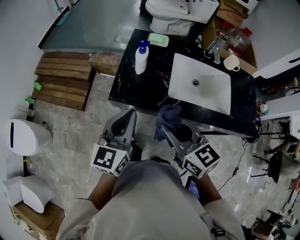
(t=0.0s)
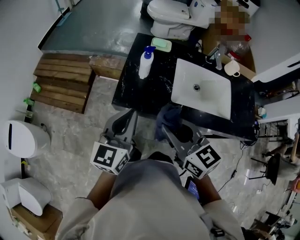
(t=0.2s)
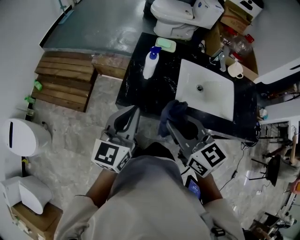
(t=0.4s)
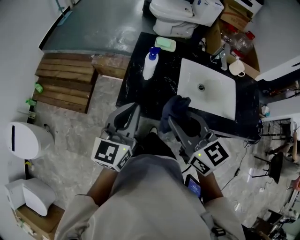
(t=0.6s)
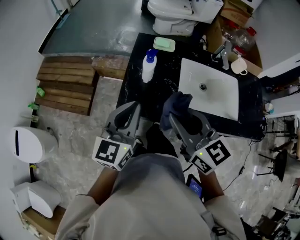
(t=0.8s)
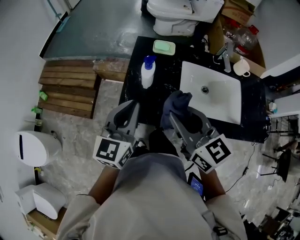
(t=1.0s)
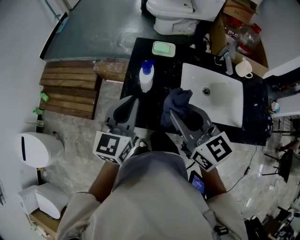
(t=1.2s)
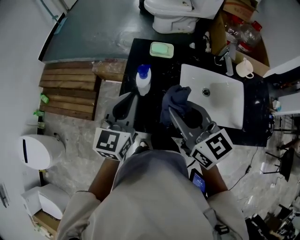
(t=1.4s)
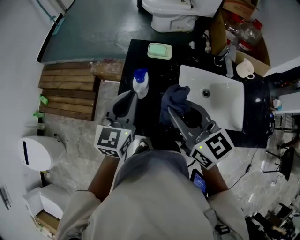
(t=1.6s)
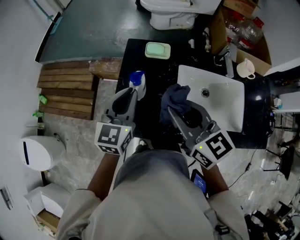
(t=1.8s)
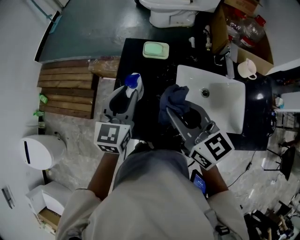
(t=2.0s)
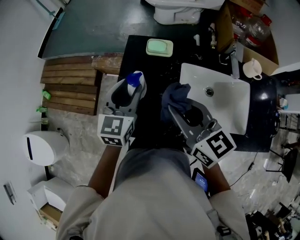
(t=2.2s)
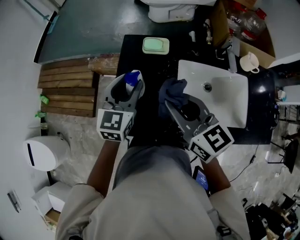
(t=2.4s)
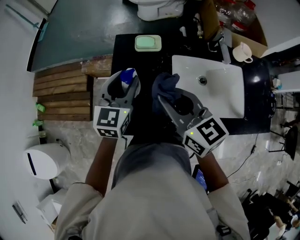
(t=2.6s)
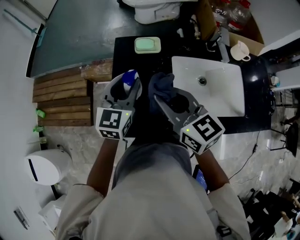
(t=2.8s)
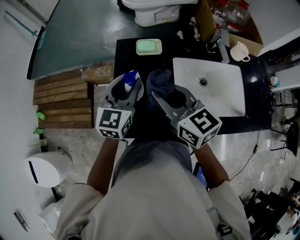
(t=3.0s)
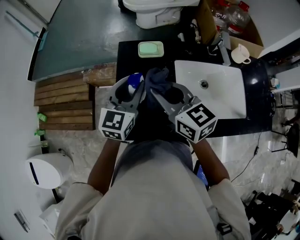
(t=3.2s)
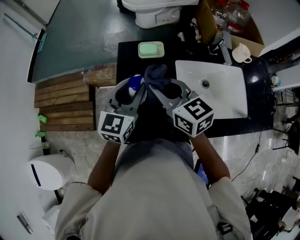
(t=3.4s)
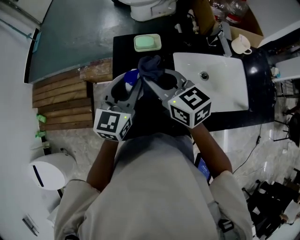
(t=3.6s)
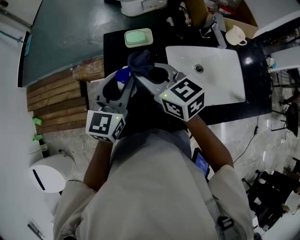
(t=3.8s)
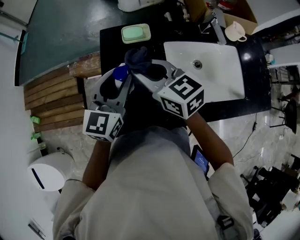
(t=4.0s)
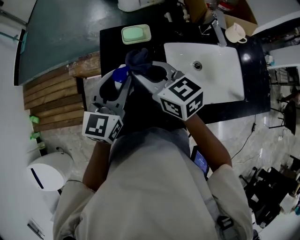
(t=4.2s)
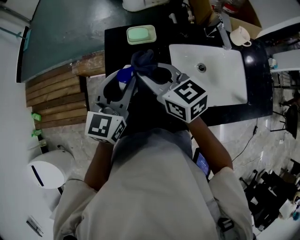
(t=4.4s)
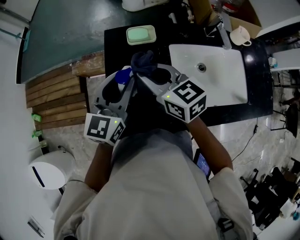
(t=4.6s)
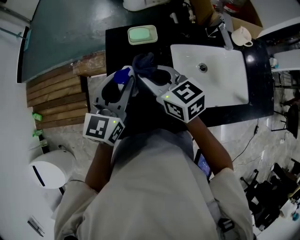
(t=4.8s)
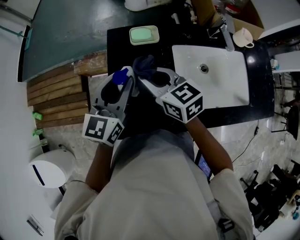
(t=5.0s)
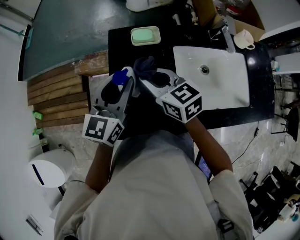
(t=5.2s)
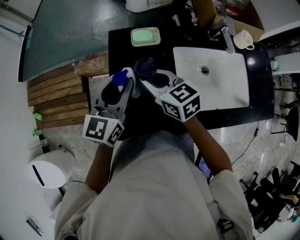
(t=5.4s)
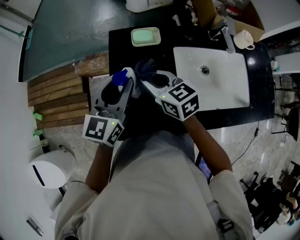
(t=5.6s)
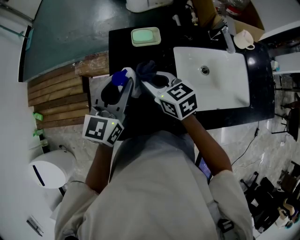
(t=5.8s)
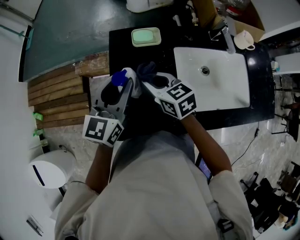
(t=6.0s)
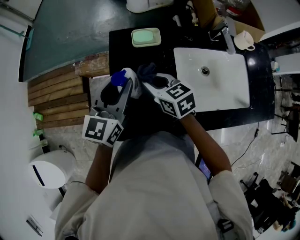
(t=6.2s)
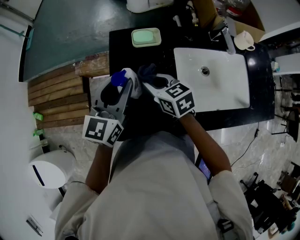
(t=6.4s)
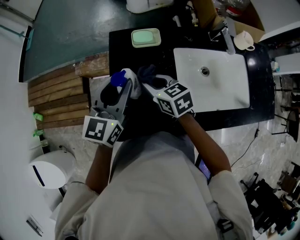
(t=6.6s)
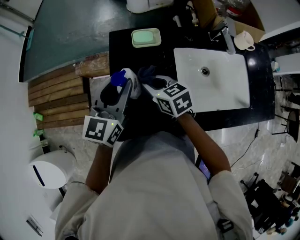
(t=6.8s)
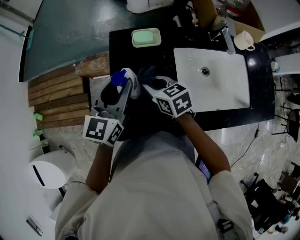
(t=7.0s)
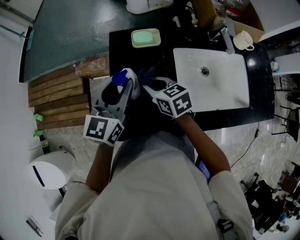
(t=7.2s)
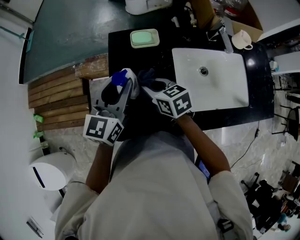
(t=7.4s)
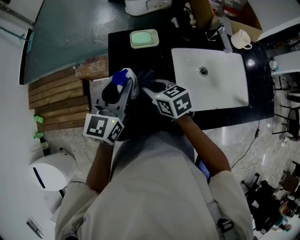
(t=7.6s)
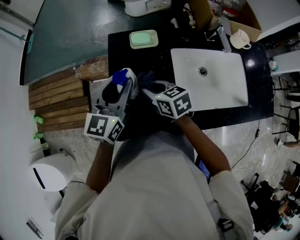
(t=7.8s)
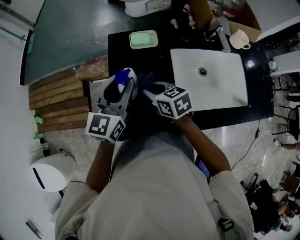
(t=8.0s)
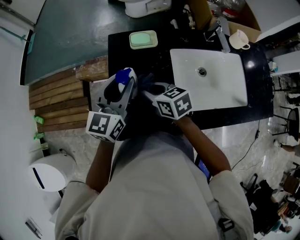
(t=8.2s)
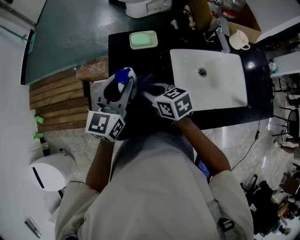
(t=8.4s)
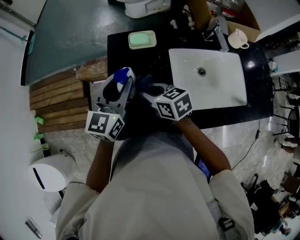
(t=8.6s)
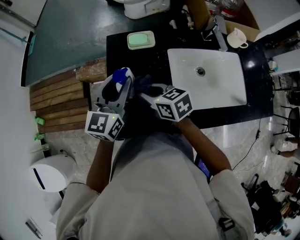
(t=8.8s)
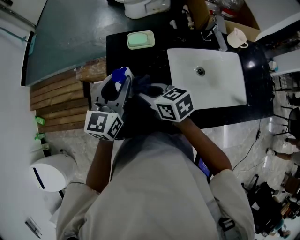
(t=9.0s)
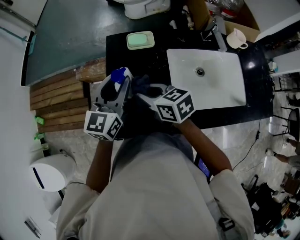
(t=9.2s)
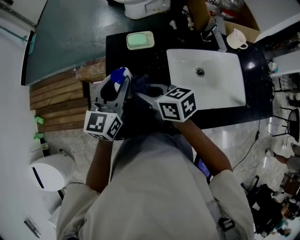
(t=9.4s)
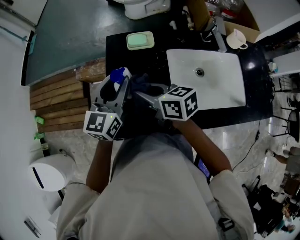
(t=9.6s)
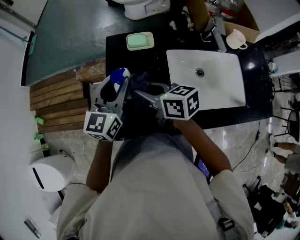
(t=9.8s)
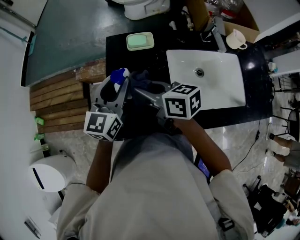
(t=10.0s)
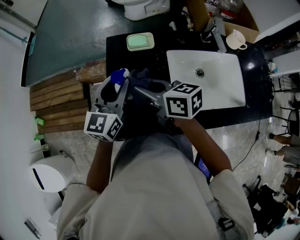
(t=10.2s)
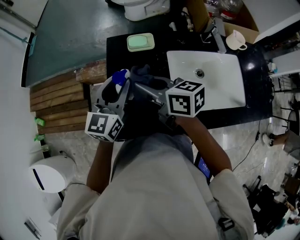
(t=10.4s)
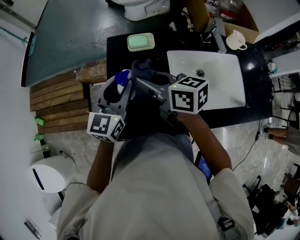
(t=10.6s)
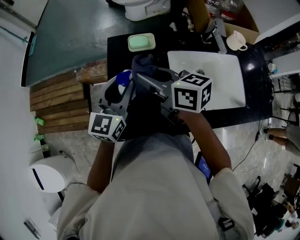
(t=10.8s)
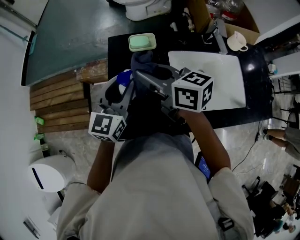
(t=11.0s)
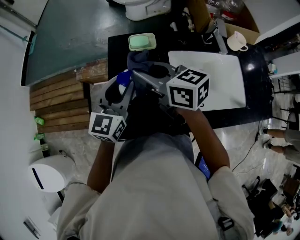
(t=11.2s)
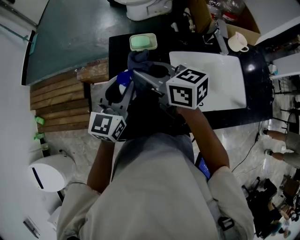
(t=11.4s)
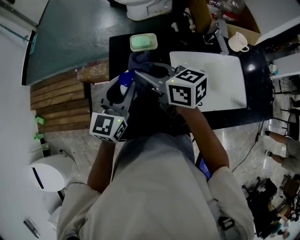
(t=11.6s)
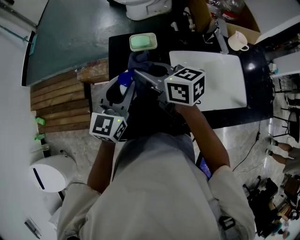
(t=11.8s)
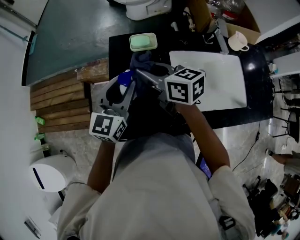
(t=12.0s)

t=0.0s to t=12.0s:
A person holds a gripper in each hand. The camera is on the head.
t=0.0s to t=1.6s: Both grippers travel together forward, about 20 cm.
t=1.6s to t=3.0s: The two grippers go approximately 5 cm forward. The left gripper opens.
t=3.0s to t=4.4s: The right gripper heads forward and downward, covering roughly 10 cm.
t=4.4s to t=6.0s: The right gripper shifts some 10 cm downward.
t=6.0s to t=9.0s: The grippers make only small movements.
t=9.0s to t=10.4s: The right gripper goes approximately 10 cm upward.
t=10.4s to t=12.0s: The grippers make only small movements.

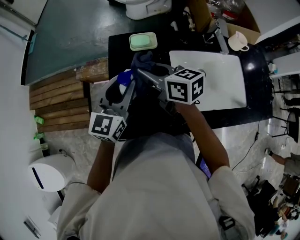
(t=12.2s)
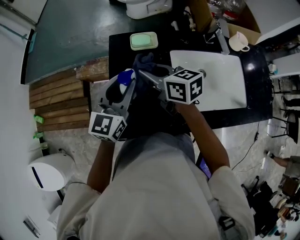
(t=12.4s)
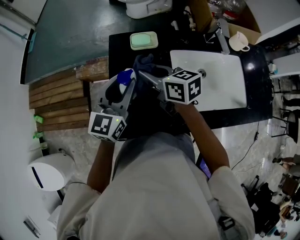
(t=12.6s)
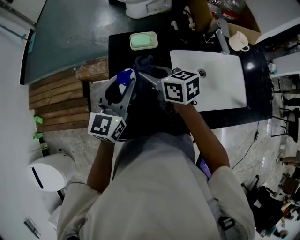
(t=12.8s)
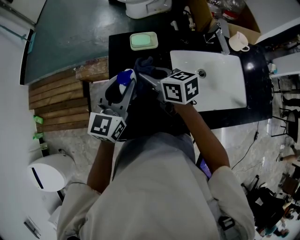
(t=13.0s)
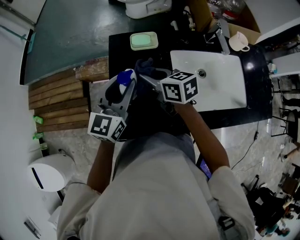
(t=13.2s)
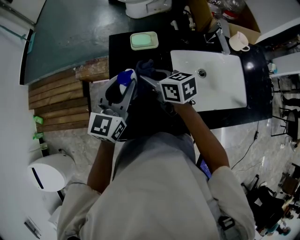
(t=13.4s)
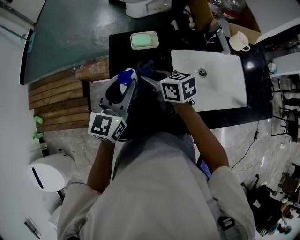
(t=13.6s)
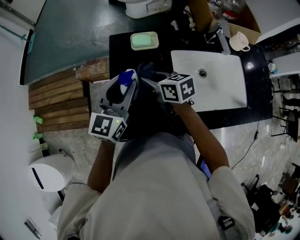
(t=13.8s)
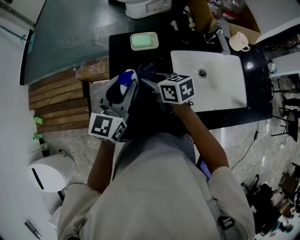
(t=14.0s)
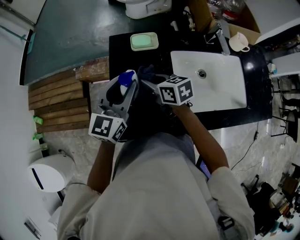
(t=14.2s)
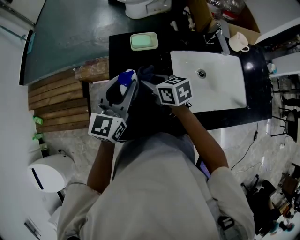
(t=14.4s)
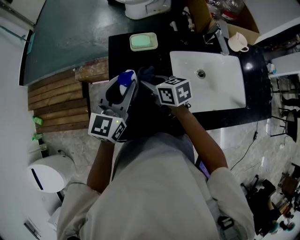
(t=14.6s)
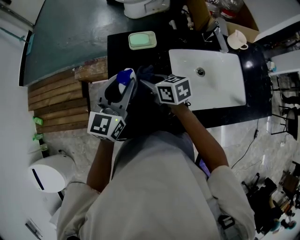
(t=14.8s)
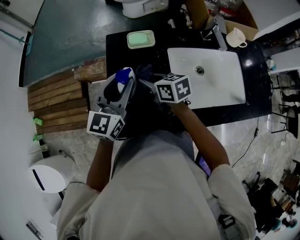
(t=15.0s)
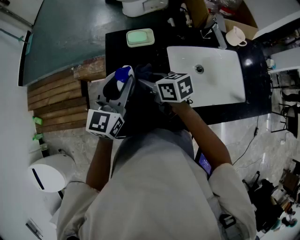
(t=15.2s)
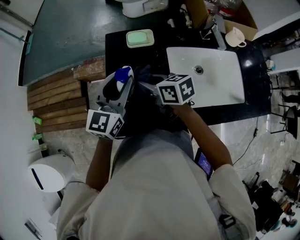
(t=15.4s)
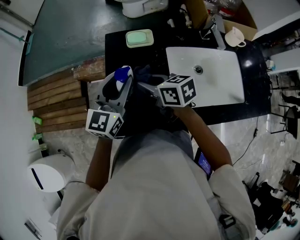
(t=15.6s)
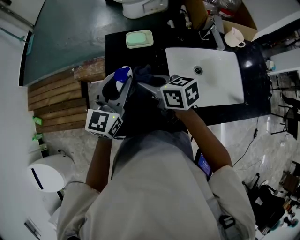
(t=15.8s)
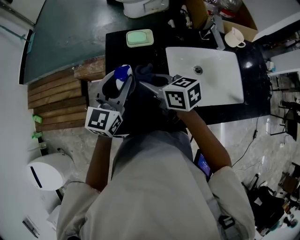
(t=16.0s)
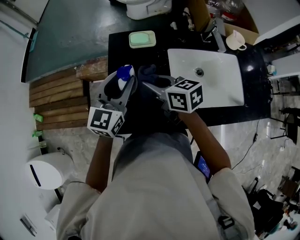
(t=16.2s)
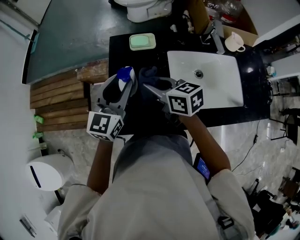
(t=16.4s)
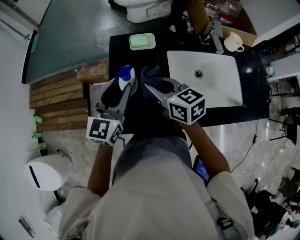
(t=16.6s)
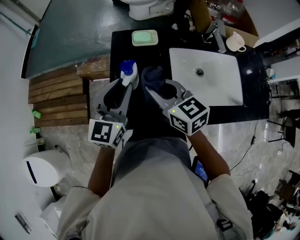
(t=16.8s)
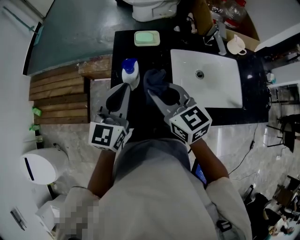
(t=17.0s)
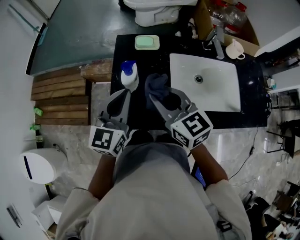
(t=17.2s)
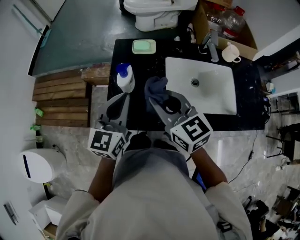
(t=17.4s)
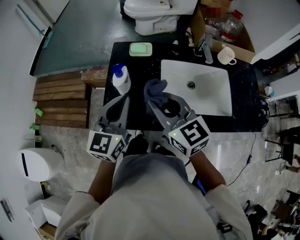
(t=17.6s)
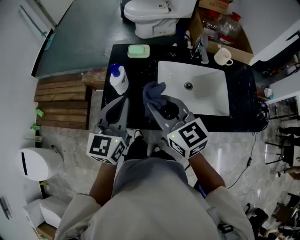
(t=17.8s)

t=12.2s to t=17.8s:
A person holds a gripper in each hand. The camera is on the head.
t=12.2s to t=13.6s: The right gripper goes approximately 5 cm downward.
t=13.6s to t=15.0s: The grippers stay close to where they were, moving slightly.
t=15.0s to t=16.4s: The right gripper heads upward, covering roughly 5 cm.
t=16.4s to t=17.8s: The right gripper travels backward, upward and to the right by some 20 cm, and turns by some 30 degrees. The left gripper travels backward and upward by some 15 cm, and closes.

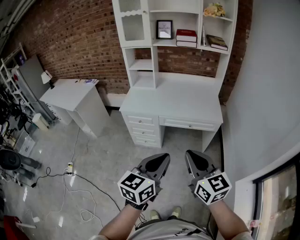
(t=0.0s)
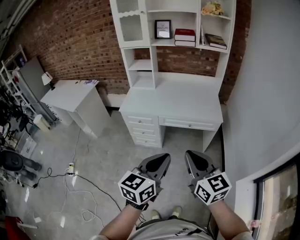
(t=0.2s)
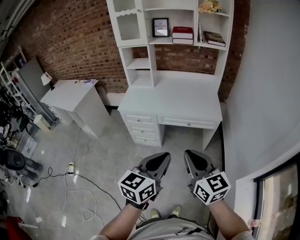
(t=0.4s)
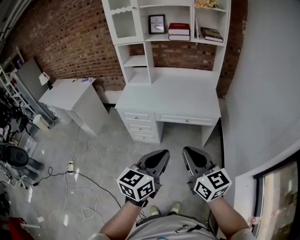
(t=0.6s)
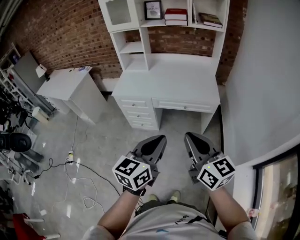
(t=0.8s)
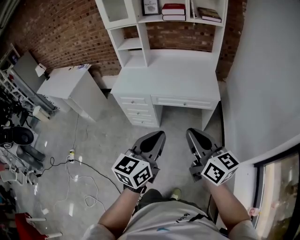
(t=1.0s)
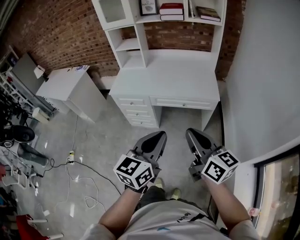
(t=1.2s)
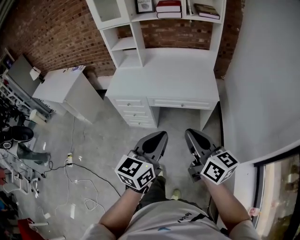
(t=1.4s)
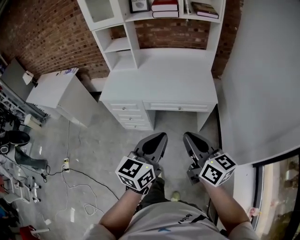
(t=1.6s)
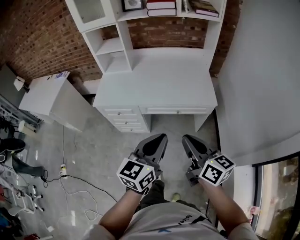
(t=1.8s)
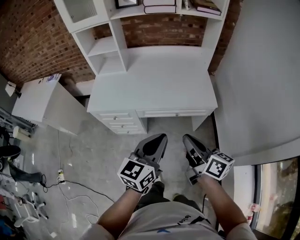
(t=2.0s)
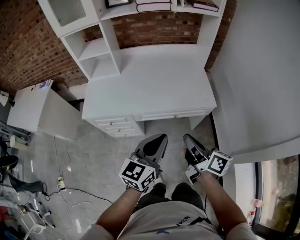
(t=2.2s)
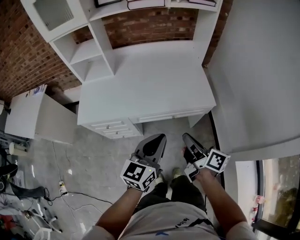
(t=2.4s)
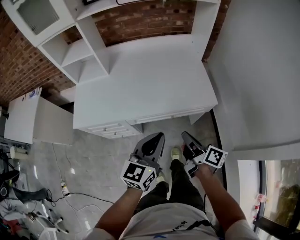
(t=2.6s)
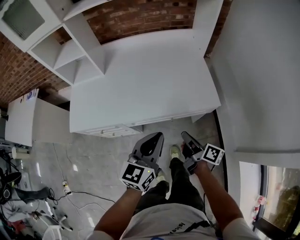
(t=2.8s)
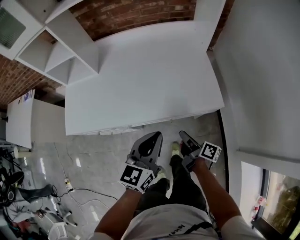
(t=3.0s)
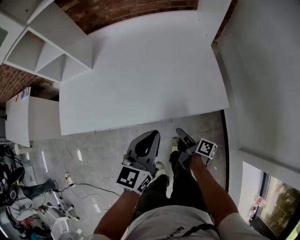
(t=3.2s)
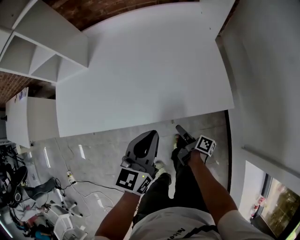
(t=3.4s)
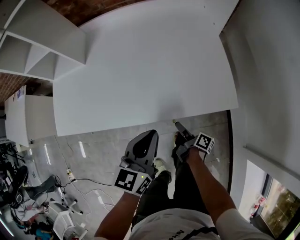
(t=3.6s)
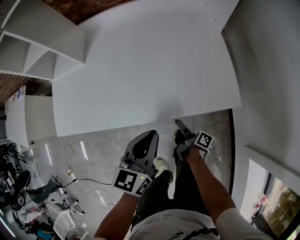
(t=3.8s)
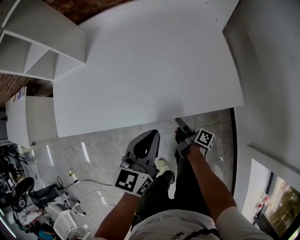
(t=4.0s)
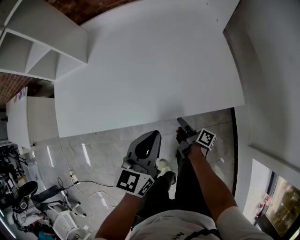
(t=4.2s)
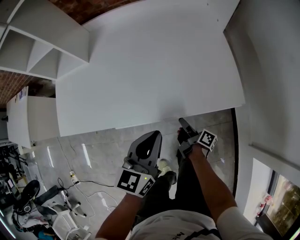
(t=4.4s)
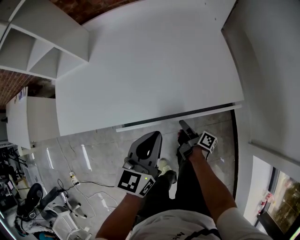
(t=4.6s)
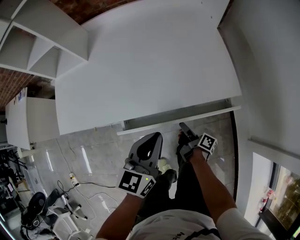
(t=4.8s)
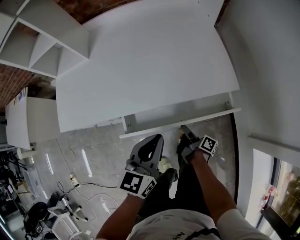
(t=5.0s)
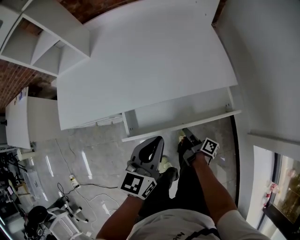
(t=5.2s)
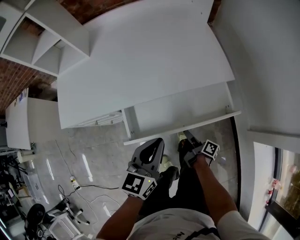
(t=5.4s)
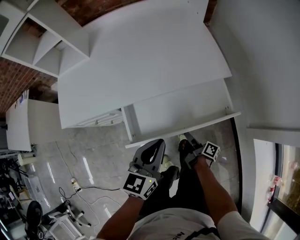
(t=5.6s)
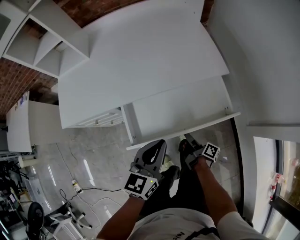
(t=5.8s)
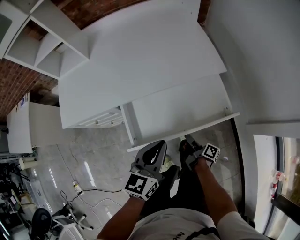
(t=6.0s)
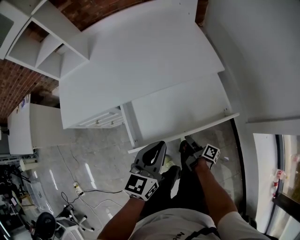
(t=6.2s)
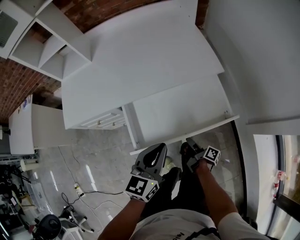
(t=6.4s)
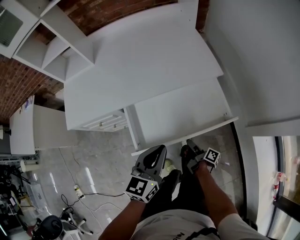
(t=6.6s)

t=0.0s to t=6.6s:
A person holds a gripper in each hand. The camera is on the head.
t=0.0s to t=1.6s: The left gripper heads forward and to the right, covering some 15 cm. The right gripper goes about 15 cm forward, to the right and downward, and rotates some 20 degrees.
t=1.6s to t=3.2s: The right gripper goes about 50 cm downward and forward, and twists roughly 60 degrees clockwise, seen from behind; the left gripper heads forward and downward, covering approximately 40 cm.
t=3.2s to t=5.0s: The left gripper goes some 10 cm backward and downward. Meanwhile the right gripper travels downward by some 10 cm.
t=5.0s to t=6.6s: Both grippers travel together backward, some 15 cm.
